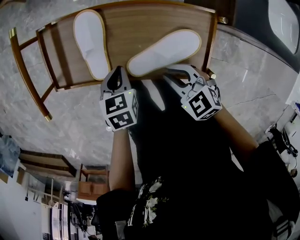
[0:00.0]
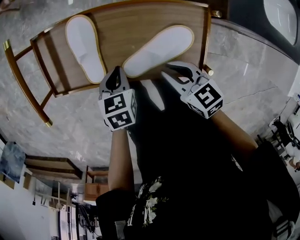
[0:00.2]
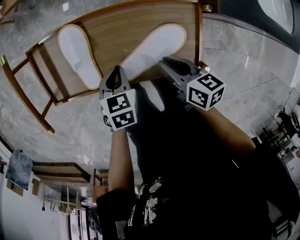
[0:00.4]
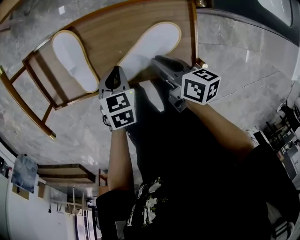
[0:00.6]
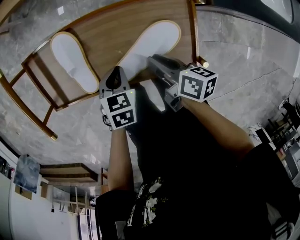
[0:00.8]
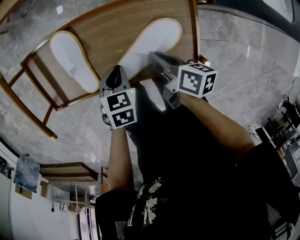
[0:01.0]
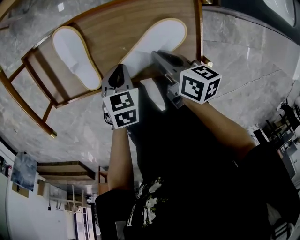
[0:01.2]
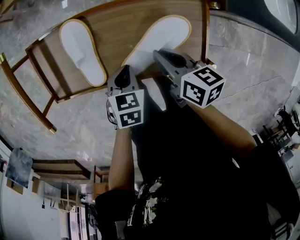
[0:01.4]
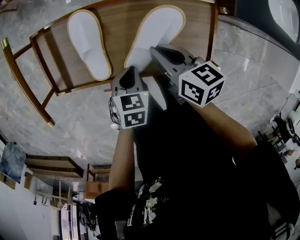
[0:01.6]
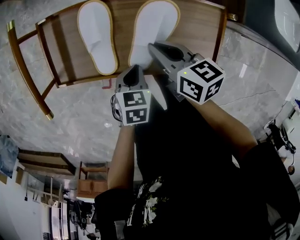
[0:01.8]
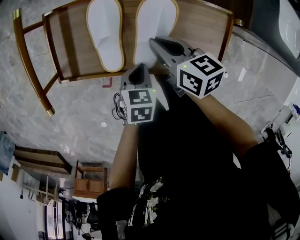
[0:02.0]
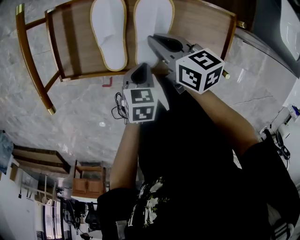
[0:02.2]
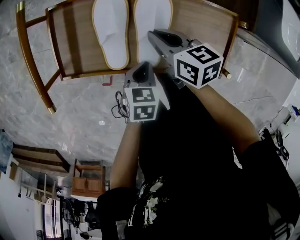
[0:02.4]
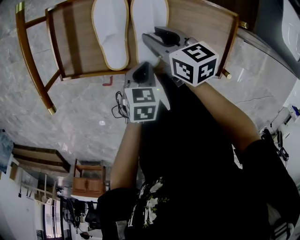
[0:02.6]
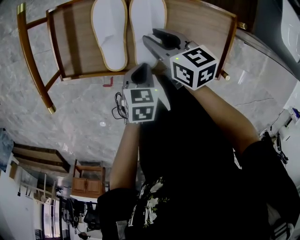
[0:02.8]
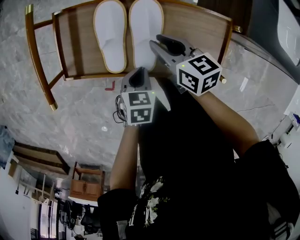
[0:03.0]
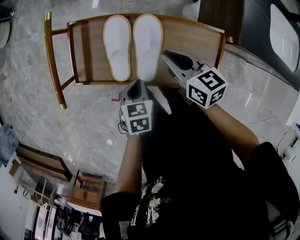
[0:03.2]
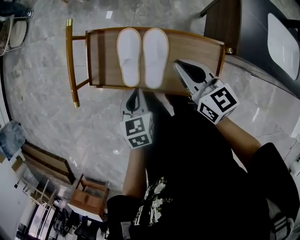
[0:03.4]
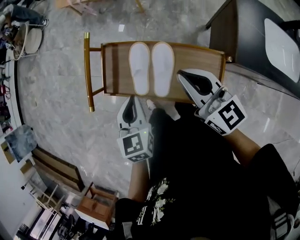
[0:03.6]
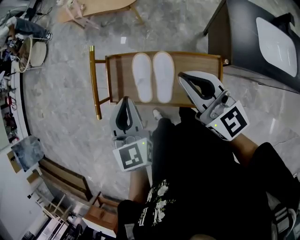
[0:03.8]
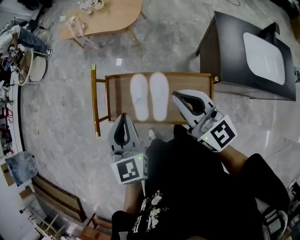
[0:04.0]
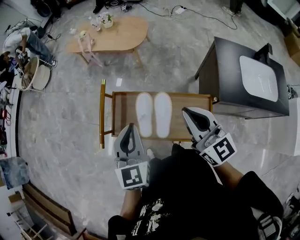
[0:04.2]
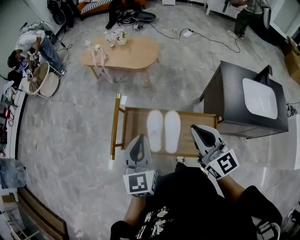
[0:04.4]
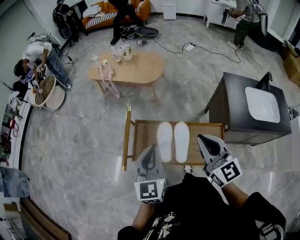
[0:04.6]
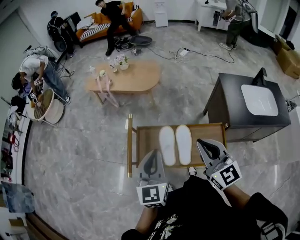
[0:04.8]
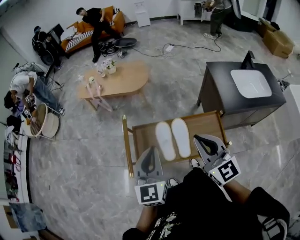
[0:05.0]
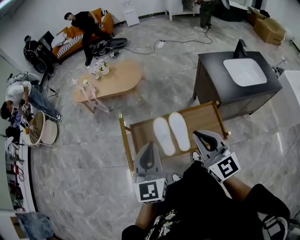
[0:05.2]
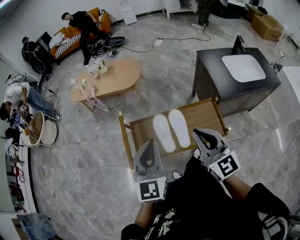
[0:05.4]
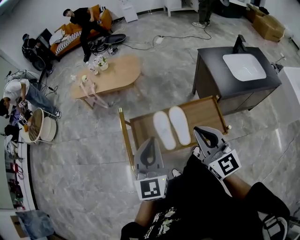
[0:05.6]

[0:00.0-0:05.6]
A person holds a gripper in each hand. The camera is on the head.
0:00.0 to 0:01.4: The right gripper heads forward, covering roughly 5 cm, and twists approximately 60 degrees clockwise, seen from behind. Meanwhile the left gripper changes place by about 5 cm.
0:01.4 to 0:02.8: The right gripper is displaced to the left and forward by roughly 10 cm, and opens.
0:02.8 to 0:04.2: The grippers both shift upward by approximately 35 cm. The left gripper tips its fingers upward by approximately 40 degrees, while the right gripper tilts its fingers about 40 degrees upward, and closes up.
0:04.2 to 0:05.6: The left gripper is displaced to the left by roughly 5 cm, and swivels roughly 20 degrees; the right gripper moves to the left and backward, about 10 cm, and rotates approximately 20 degrees.

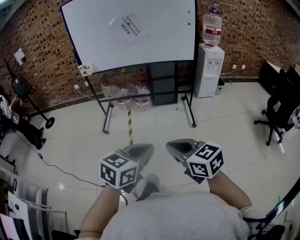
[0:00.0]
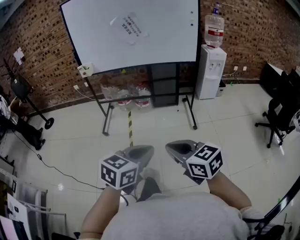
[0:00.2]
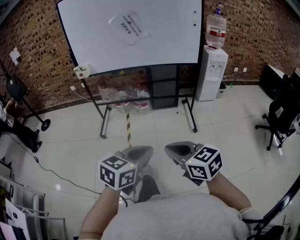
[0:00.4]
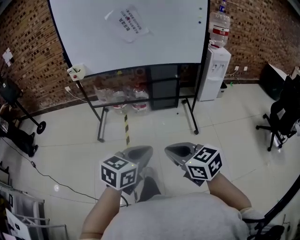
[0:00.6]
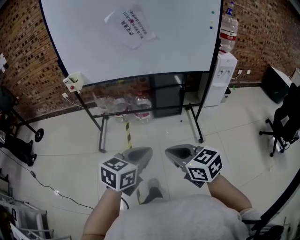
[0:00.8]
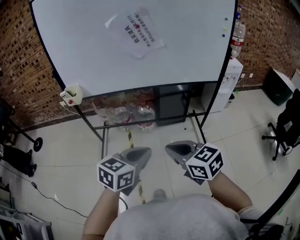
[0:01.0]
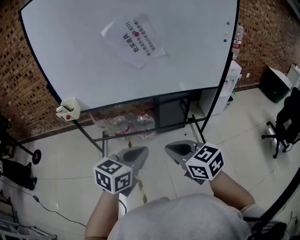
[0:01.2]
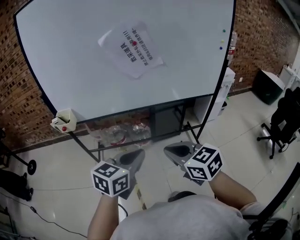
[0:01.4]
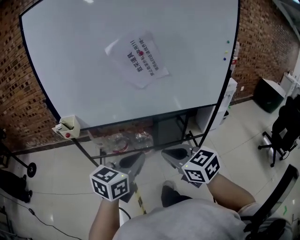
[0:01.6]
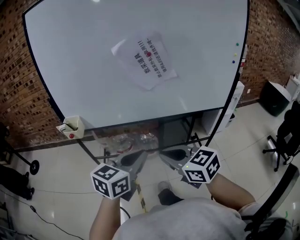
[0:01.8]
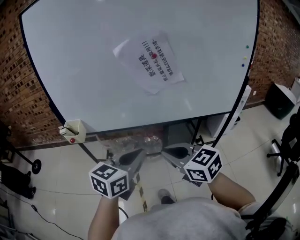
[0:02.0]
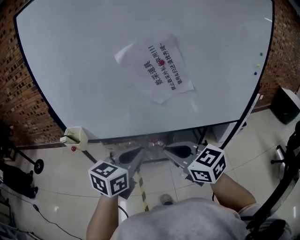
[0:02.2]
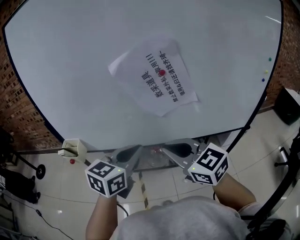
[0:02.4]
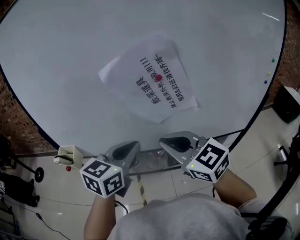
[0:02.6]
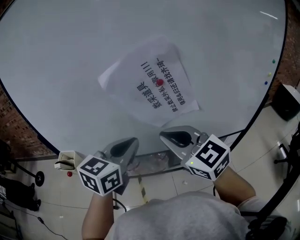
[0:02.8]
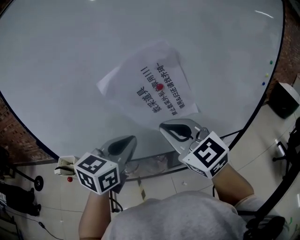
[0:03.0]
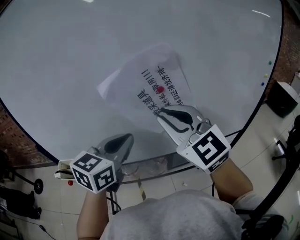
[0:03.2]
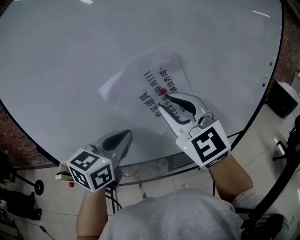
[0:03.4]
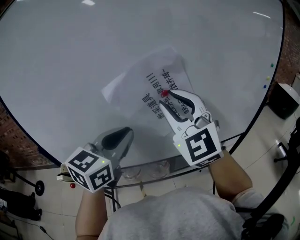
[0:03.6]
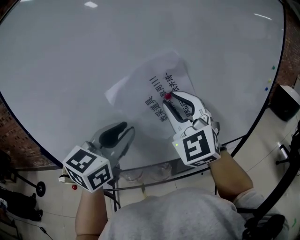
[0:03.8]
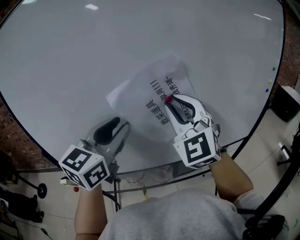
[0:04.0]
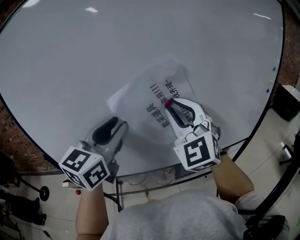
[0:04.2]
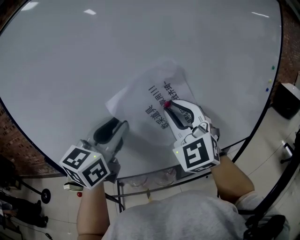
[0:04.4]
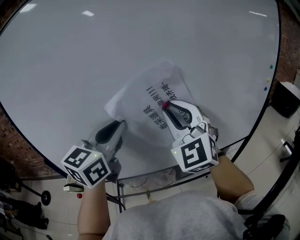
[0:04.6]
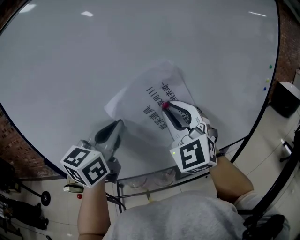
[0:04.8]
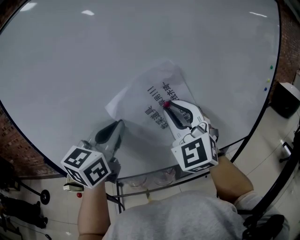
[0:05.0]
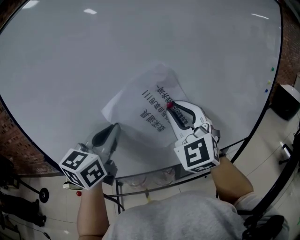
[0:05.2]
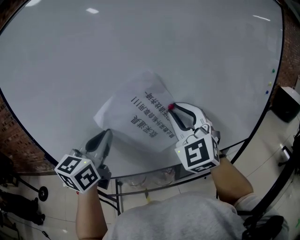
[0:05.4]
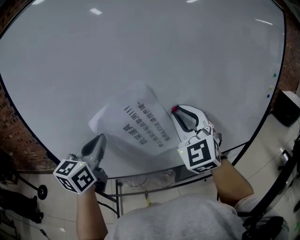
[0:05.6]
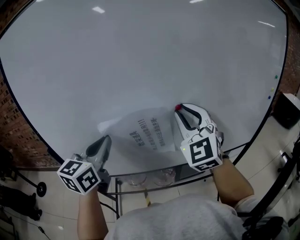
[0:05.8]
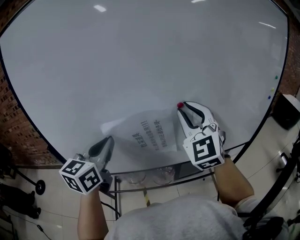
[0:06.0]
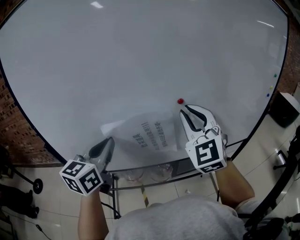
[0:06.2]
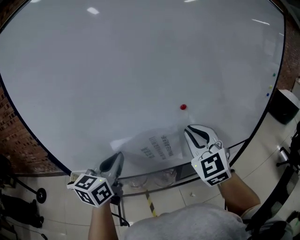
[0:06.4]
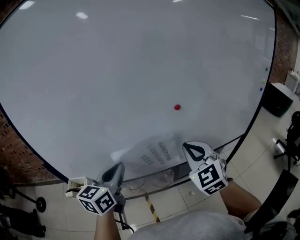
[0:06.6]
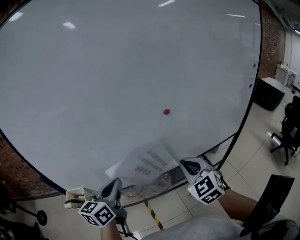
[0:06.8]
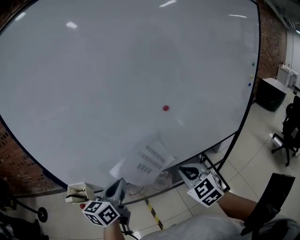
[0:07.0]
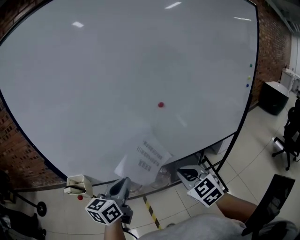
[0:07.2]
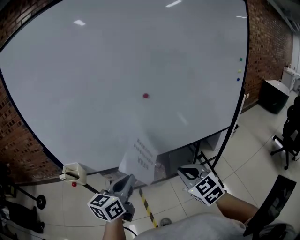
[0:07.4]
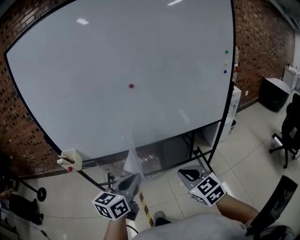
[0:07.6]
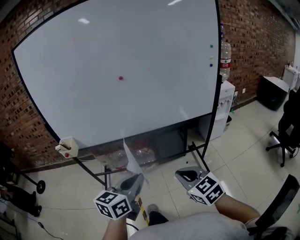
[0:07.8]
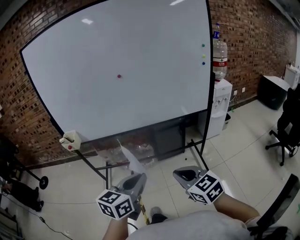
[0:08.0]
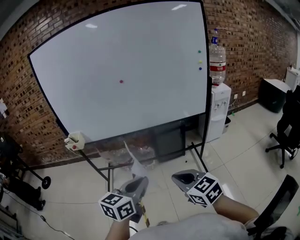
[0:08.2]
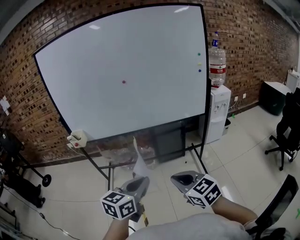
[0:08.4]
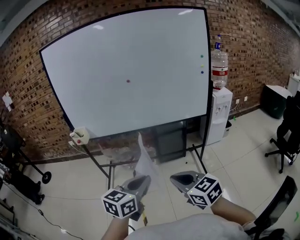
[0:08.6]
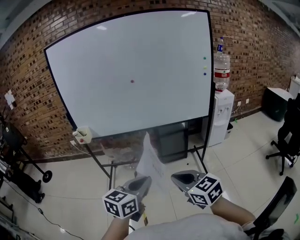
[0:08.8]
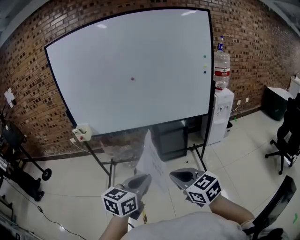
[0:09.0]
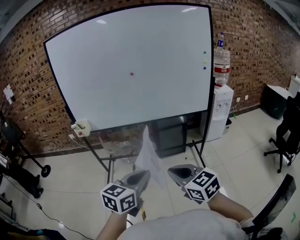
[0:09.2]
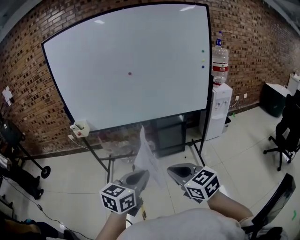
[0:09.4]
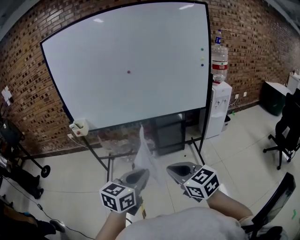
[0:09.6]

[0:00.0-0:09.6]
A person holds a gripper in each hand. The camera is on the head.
0:00.0 to 0:01.6: Both grippers are carried forward, some 60 cm.
0:01.6 to 0:03.2: The left gripper goes about 30 cm forward; the right gripper shifts approximately 40 cm forward and upward, and changes its angle by roughly 40 degrees.
0:03.2 to 0:04.8: The right gripper shifts about 5 cm forward, and rotates some 30 degrees; the left gripper is displaced upward by approximately 10 cm, and opens, then closes again.
0:04.8 to 0:06.4: The left gripper is displaced downward and to the left by about 15 cm. The right gripper is displaced downward by roughly 10 cm.
0:06.4 to 0:08.0: The pair of grippers is taken backward and to the right, about 50 cm. The right gripper is displaced downward by about 15 cm, and rotates roughly 40 degrees.
0:08.0 to 0:09.6: The two grippers go approximately 10 cm backward.

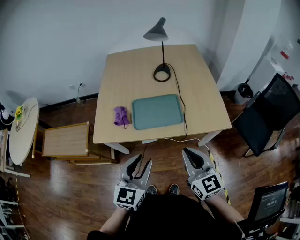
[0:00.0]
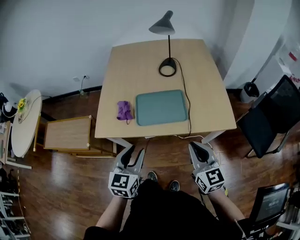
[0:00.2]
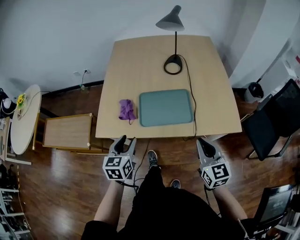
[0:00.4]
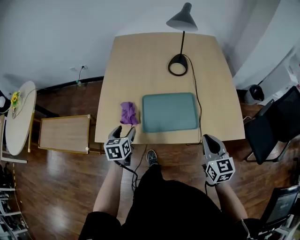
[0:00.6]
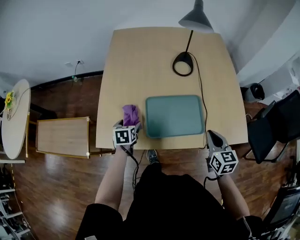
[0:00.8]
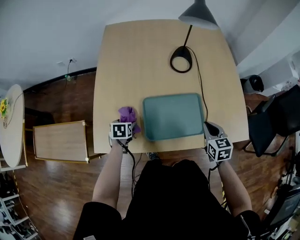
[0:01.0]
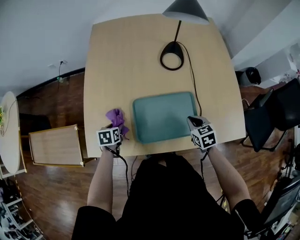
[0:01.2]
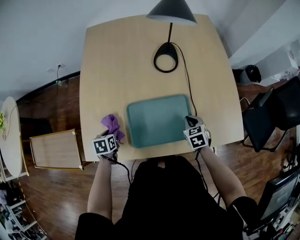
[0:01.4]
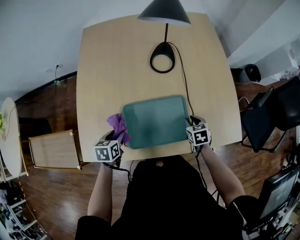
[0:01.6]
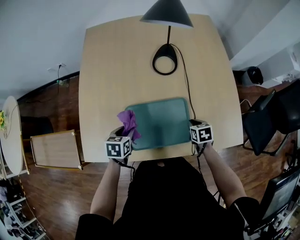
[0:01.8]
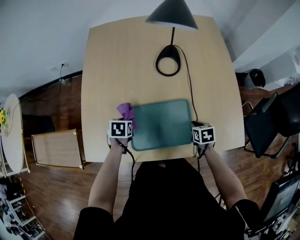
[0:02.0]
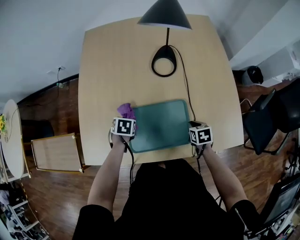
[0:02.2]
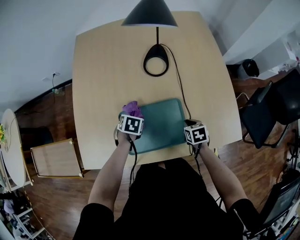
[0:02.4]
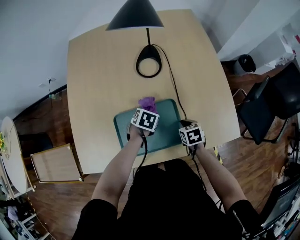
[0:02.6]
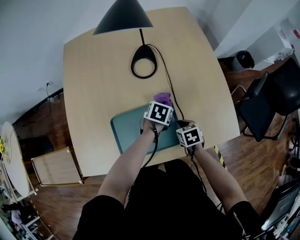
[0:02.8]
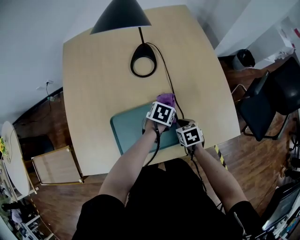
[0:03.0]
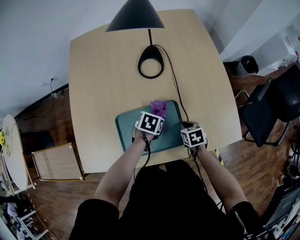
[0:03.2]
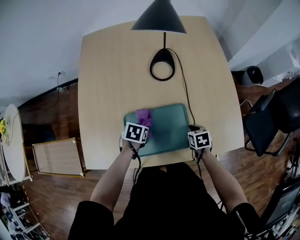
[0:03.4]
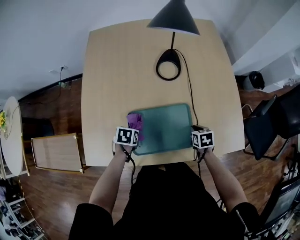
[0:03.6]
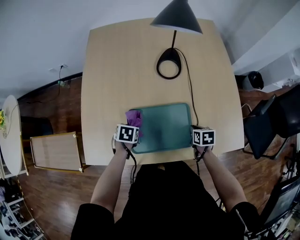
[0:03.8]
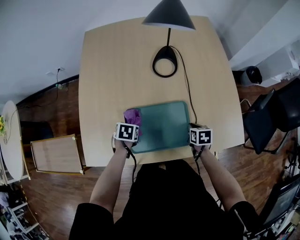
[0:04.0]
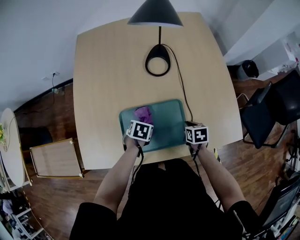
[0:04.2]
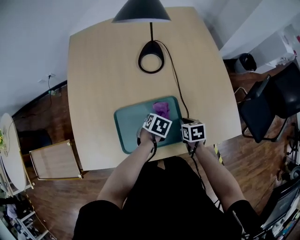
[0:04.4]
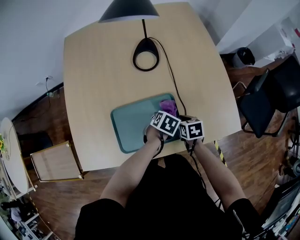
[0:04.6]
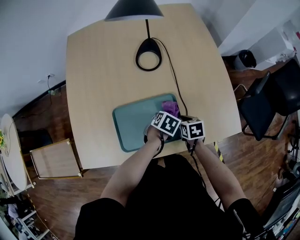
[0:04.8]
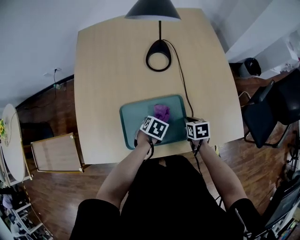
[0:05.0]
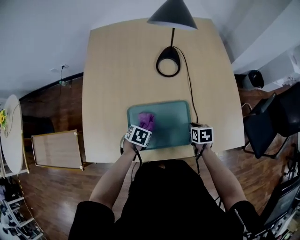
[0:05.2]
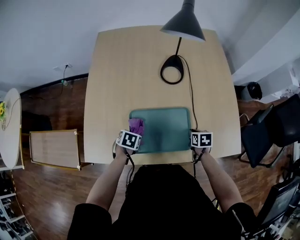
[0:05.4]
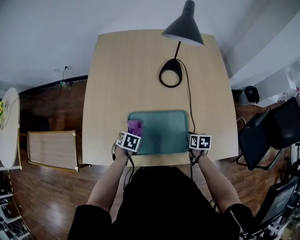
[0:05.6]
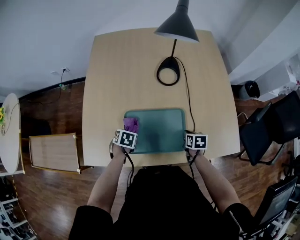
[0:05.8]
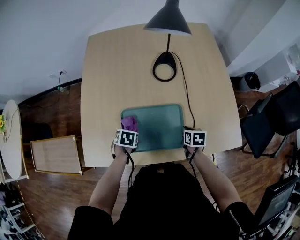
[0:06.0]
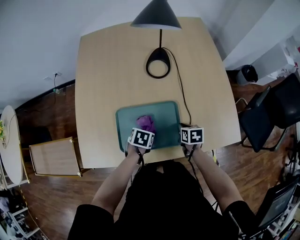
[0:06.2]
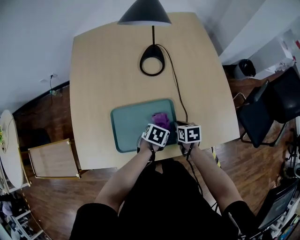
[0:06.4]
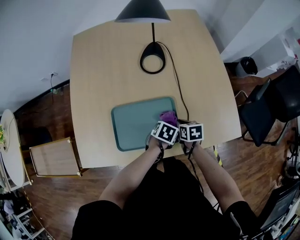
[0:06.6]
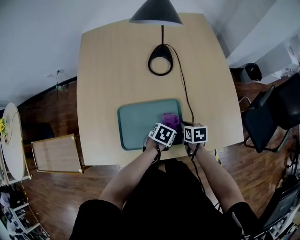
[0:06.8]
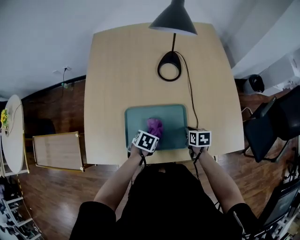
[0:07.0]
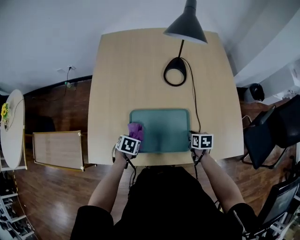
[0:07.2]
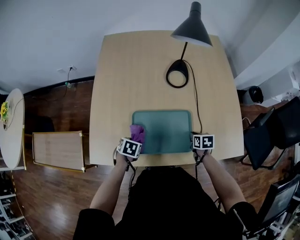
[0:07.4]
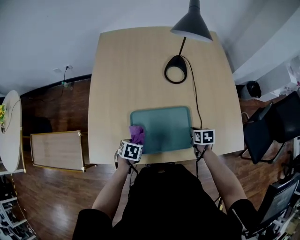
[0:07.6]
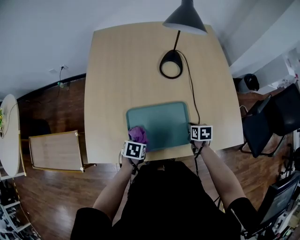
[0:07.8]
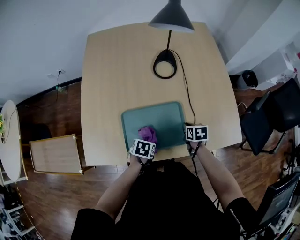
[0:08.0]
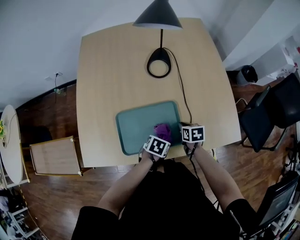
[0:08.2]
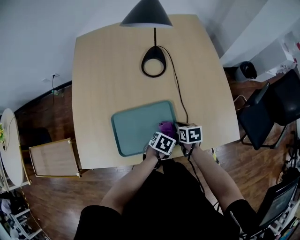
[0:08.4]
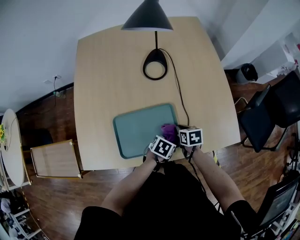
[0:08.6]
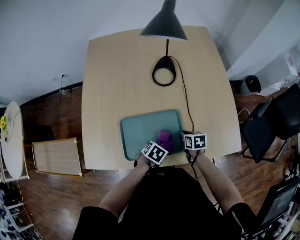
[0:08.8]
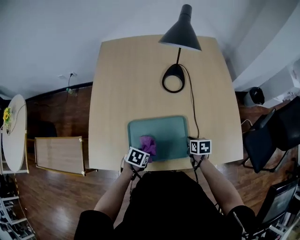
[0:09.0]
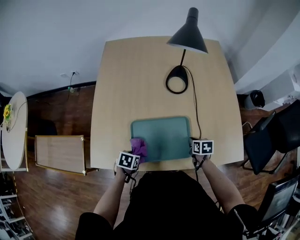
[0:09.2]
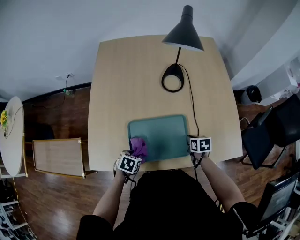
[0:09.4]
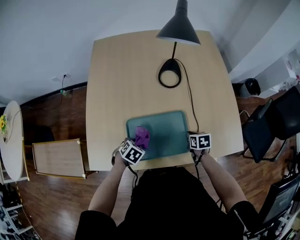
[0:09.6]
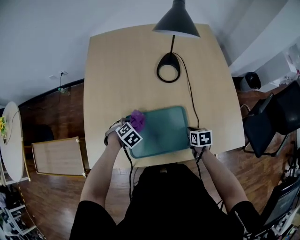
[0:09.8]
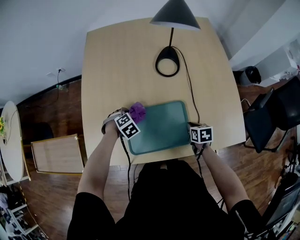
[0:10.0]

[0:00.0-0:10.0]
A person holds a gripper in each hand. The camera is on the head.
0:00.0 to 0:01.4: The left gripper shifts about 50 cm downward, forward and to the left, points its fingers some 50 degrees further downward, and opens and closes again. The right gripper shifts roughly 40 cm forward and downward, and points its fingers approximately 50 degrees further downward.
0:01.4 to 0:02.8: The right gripper ends up about 5 cm from where it was, and rotates approximately 20 degrees. Meanwhile the left gripper travels to the right by approximately 35 cm, and changes its angle by about 40 degrees.
0:02.8 to 0:04.2: The left gripper travels to the left and backward by some 15 cm.
0:04.2 to 0:05.8: The left gripper shifts by roughly 10 cm.
0:07.2 to 0:08.6: The left gripper heads to the right, covering roughly 25 cm, and rotates about 30 degrees.
0:08.6 to 0:10.0: The left gripper changes place by about 30 cm, and turns by some 50 degrees.
